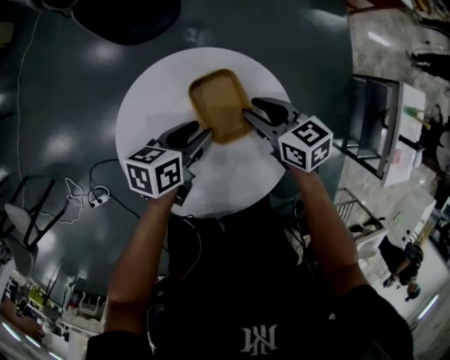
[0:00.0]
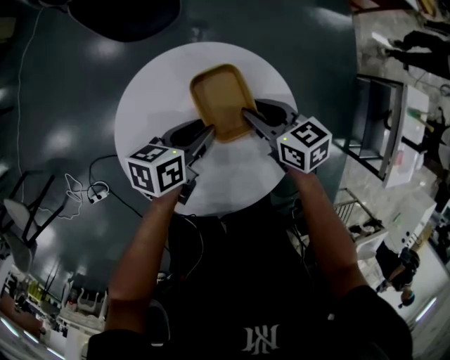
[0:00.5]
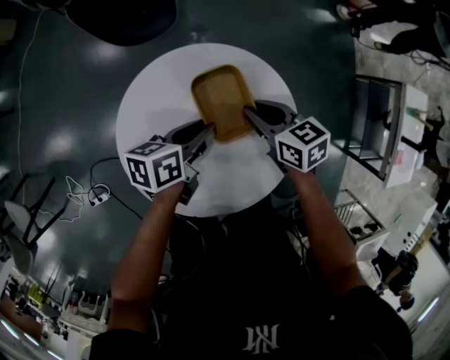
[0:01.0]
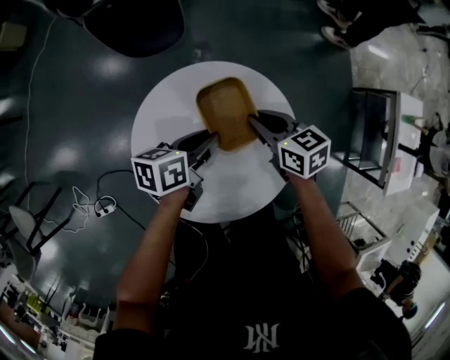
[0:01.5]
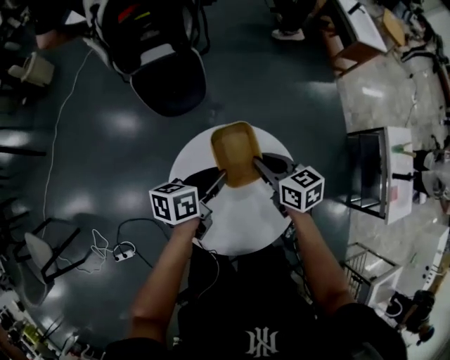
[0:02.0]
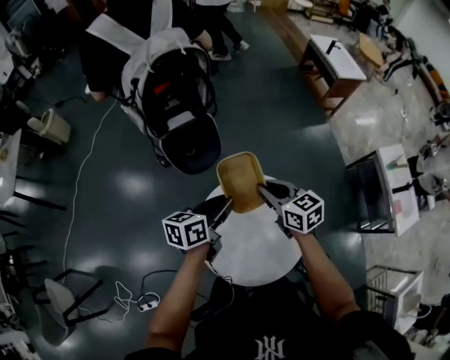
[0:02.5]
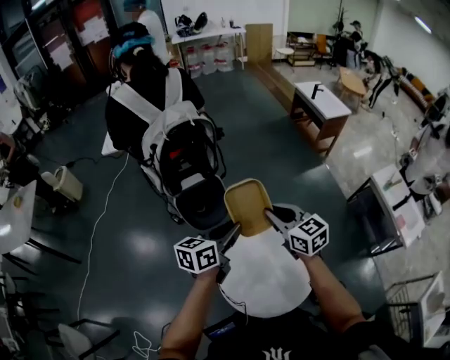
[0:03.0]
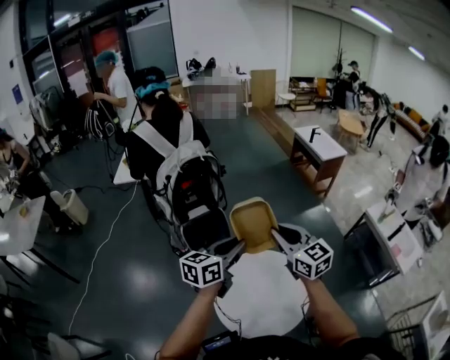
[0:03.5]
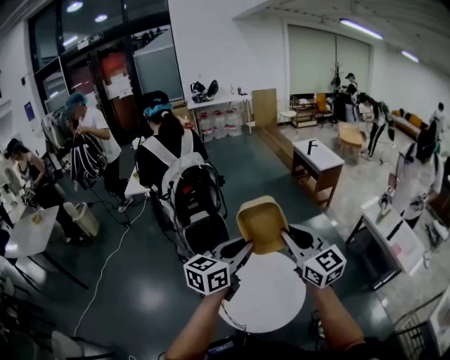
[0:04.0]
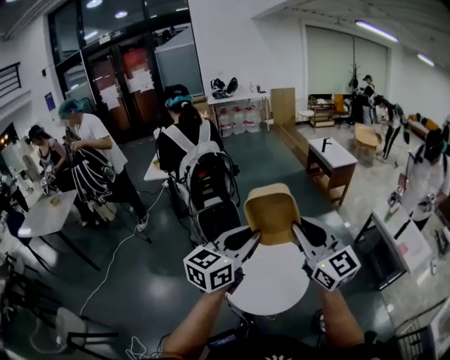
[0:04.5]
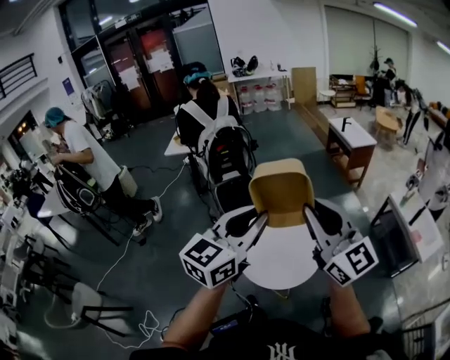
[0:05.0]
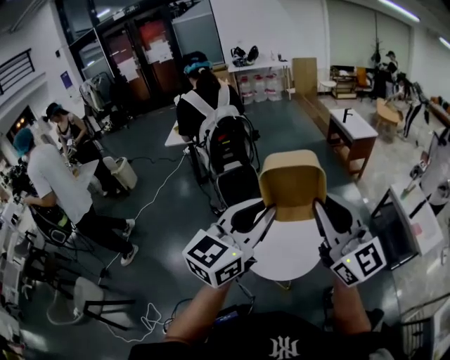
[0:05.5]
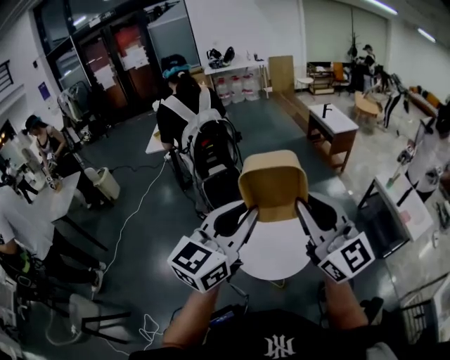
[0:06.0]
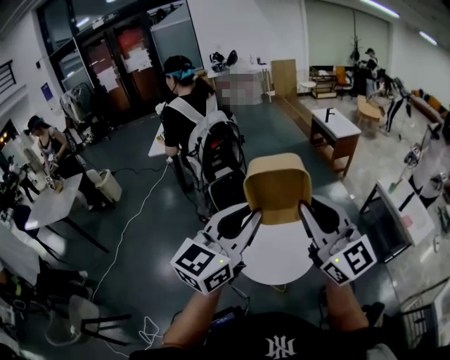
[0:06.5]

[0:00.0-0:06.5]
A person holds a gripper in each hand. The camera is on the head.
0:00.0 to 0:02.0: The grippers both shift upward and to the left by some 15 cm. The right gripper closes. The left gripper closes up.
0:02.0 to 0:04.5: Both grippers travel together upward and backward, some 50 cm. The left gripper rotates around the line of its fingers by roughly 50 degrees, clockwise from behind. Meanwhile the right gripper tilts its fingers about 50 degrees upward.
0:04.5 to 0:06.5: The grippers both shift backward and upward by about 10 cm.

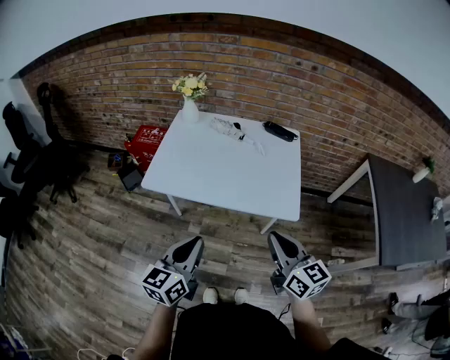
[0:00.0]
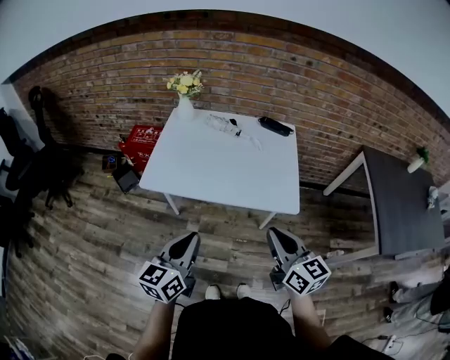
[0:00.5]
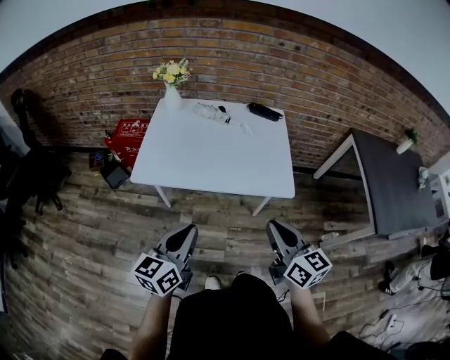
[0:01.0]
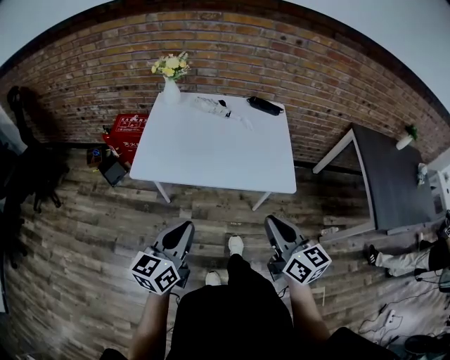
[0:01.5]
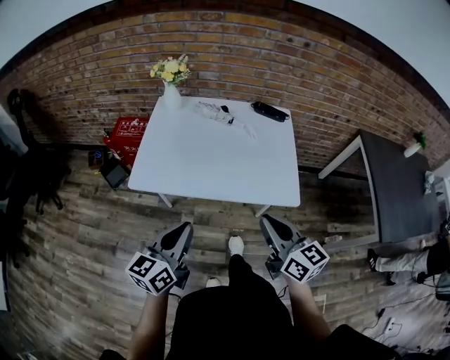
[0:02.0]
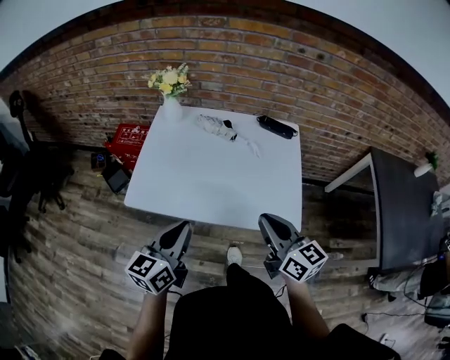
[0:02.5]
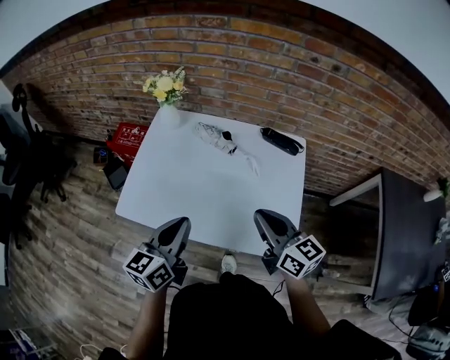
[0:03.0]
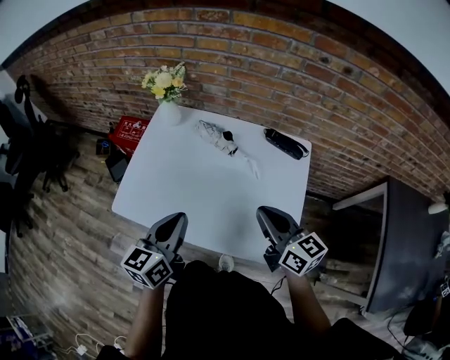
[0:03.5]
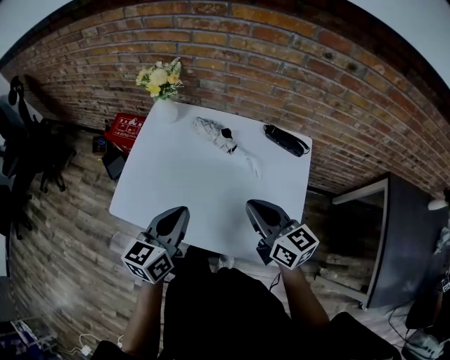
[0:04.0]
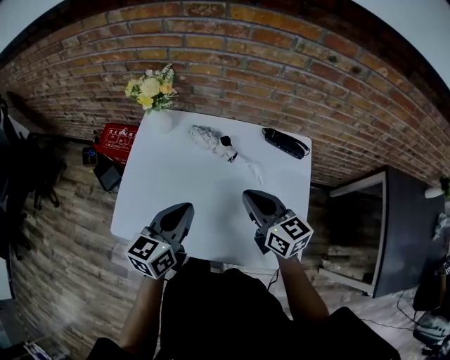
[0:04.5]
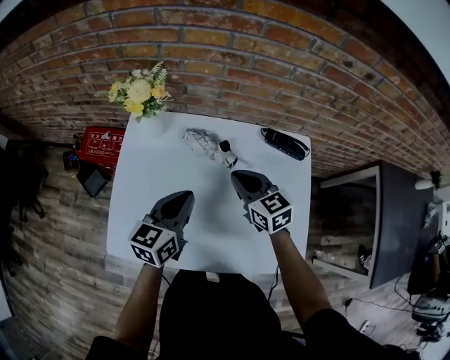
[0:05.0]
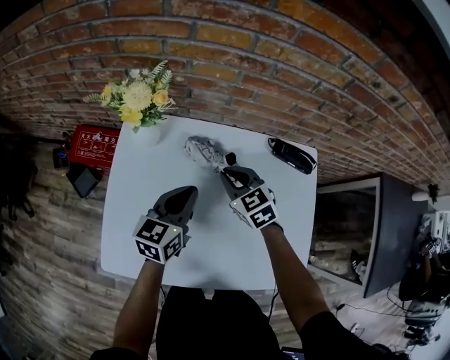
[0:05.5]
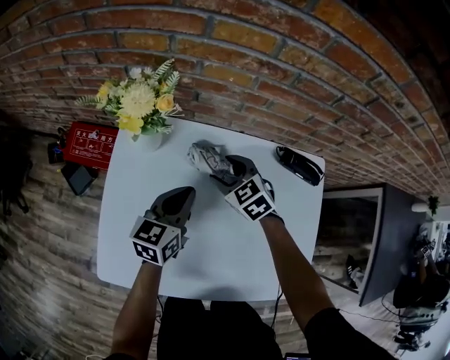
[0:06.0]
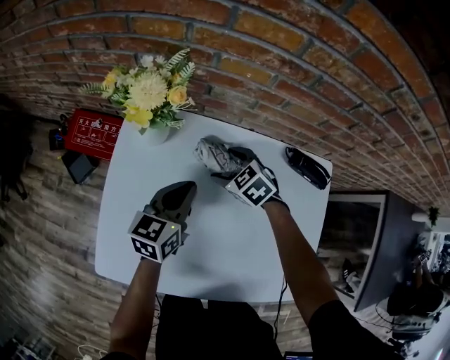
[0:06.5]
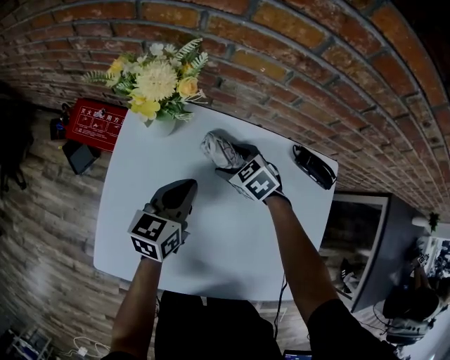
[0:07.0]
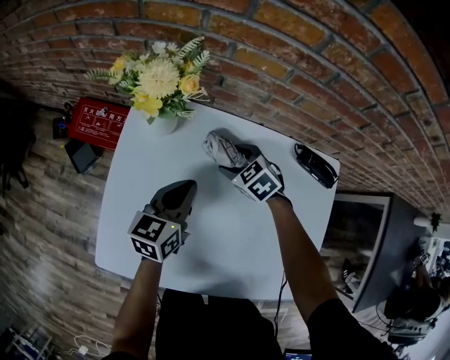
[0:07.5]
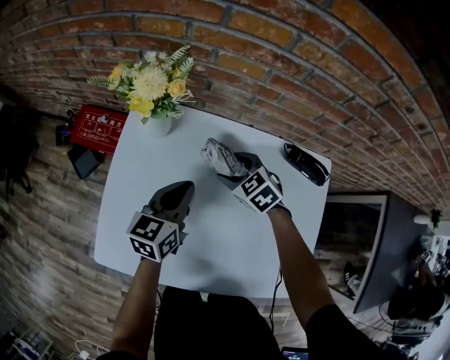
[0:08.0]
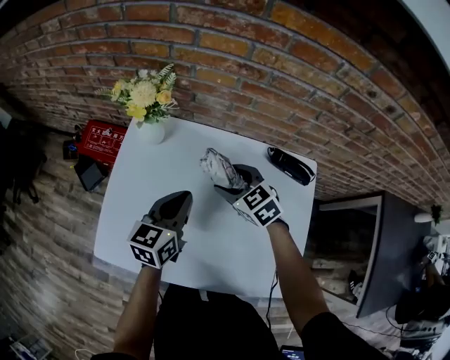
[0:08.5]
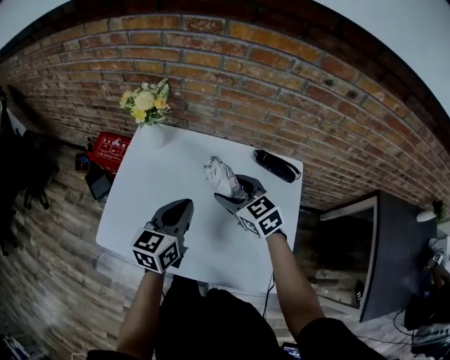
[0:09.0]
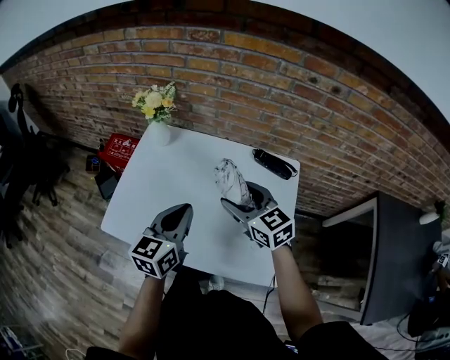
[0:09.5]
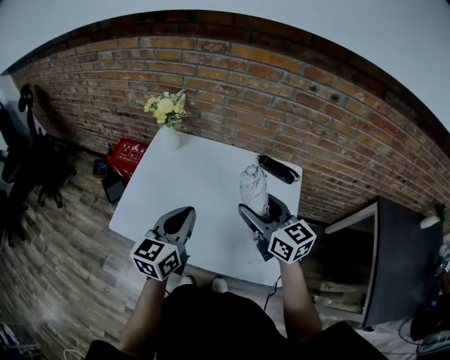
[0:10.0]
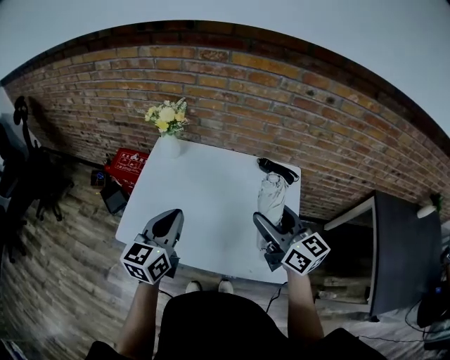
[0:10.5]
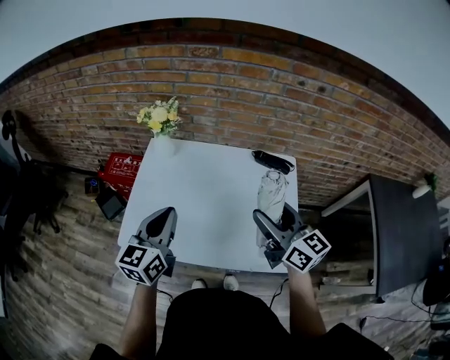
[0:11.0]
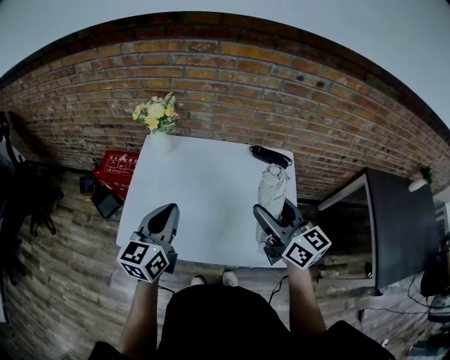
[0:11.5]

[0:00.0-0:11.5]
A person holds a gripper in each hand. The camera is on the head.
0:00.0 to 0:02.0: The right gripper ends up about 5 cm from where it was, while the left gripper moves forward and to the left, roughly 10 cm.
0:02.0 to 0:04.0: Both grippers move forward, approximately 25 cm.
0:04.0 to 0:06.0: The left gripper heads forward and downward, covering about 30 cm; the right gripper heads forward, downward and to the left, covering about 40 cm, tips its fingers downward by roughly 40 degrees, and opens up.
0:06.0 to 0:07.5: The right gripper travels downward by roughly 5 cm.
0:07.5 to 0:09.5: The left gripper goes approximately 30 cm backward and upward, while the right gripper shifts some 35 cm upward and backward, and points its fingers some 40 degrees further upward.
0:09.5 to 0:11.5: The right gripper is displaced upward and backward by about 15 cm, and swivels some 30 degrees; the left gripper moves to the left and upward, approximately 10 cm.

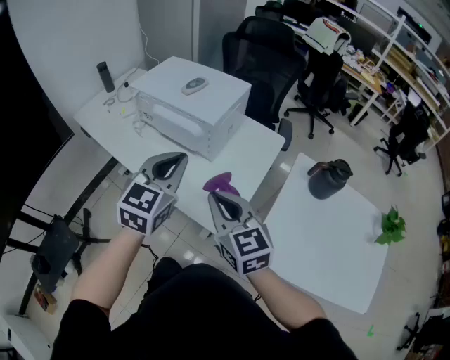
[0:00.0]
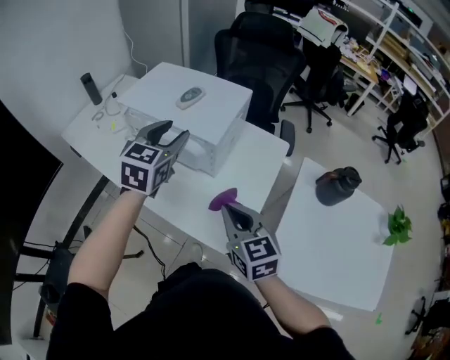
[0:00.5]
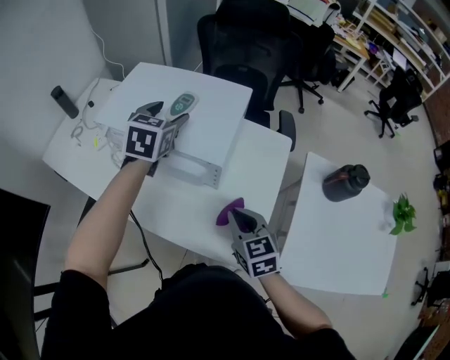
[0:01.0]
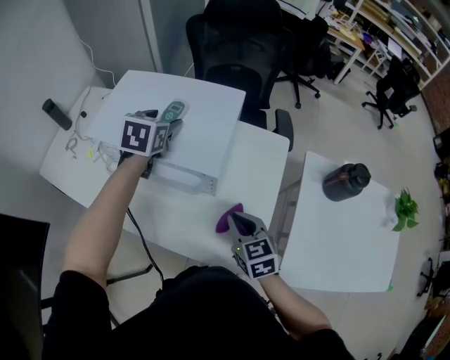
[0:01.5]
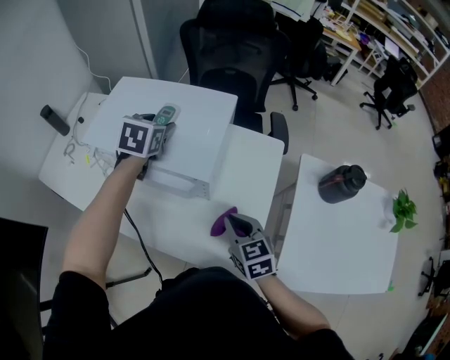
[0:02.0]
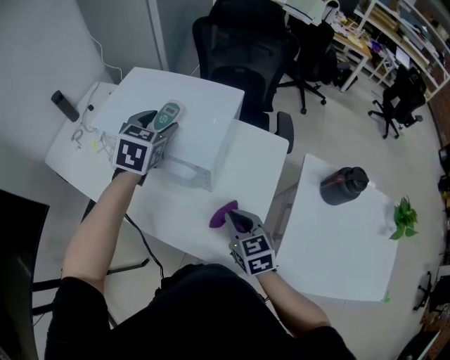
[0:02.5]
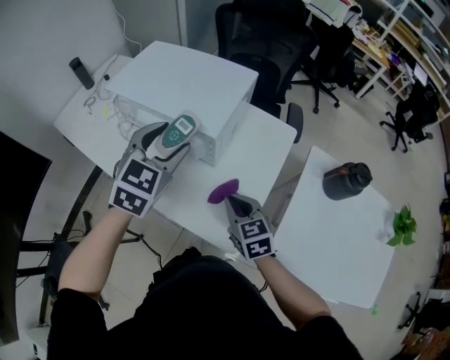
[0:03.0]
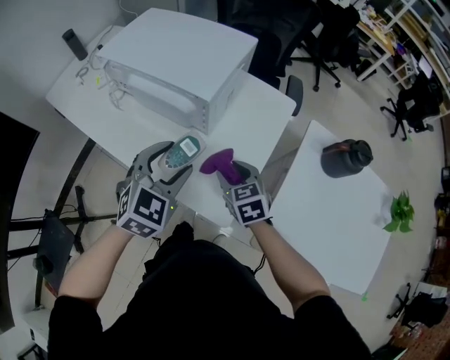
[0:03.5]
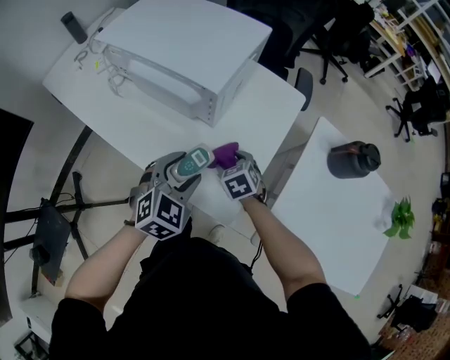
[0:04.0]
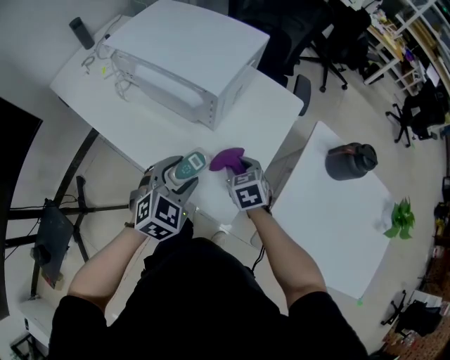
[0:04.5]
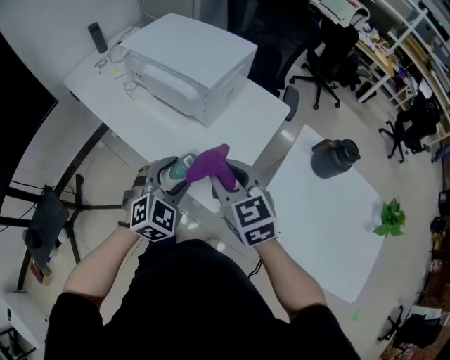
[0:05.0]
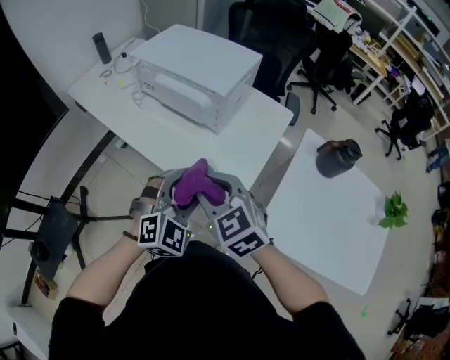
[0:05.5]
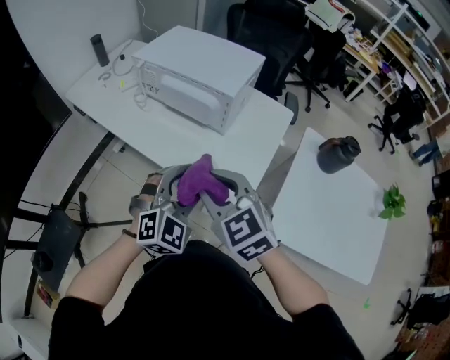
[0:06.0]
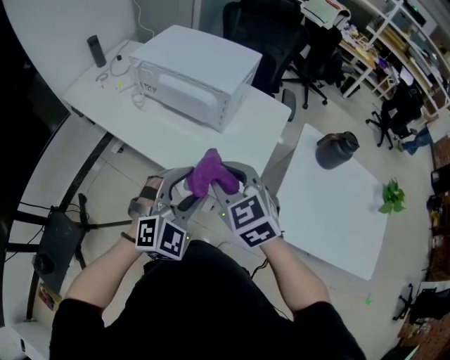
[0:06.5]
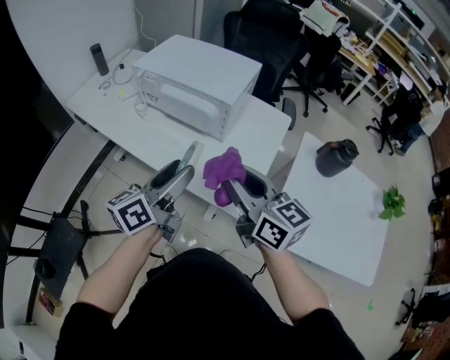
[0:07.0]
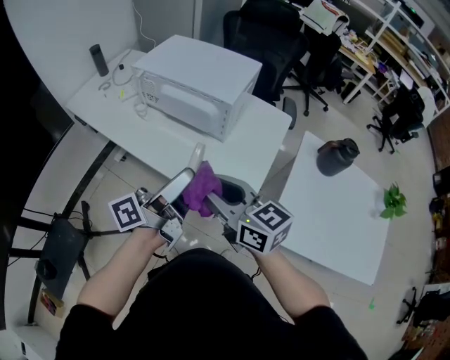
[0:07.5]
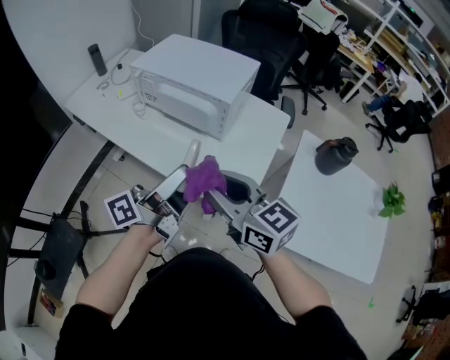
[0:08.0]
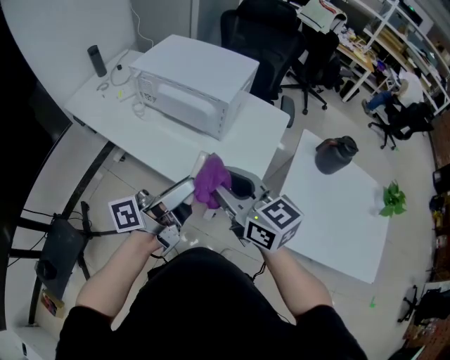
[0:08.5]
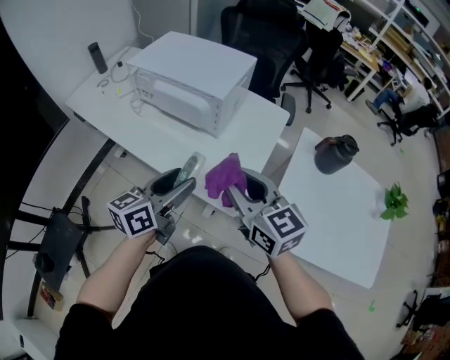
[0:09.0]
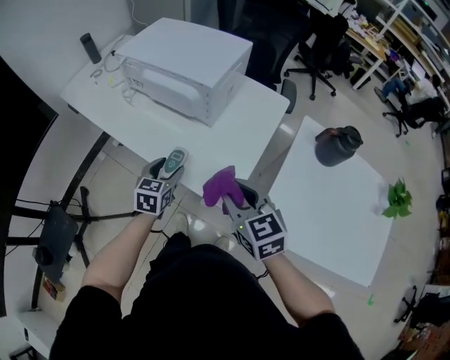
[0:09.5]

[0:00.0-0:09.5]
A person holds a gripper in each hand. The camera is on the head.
0:00.0 to 0:02.0: The left gripper moves forward, some 40 cm, turns by approximately 30 degrees, and opens up; the right gripper heads forward and downward, covering approximately 25 cm, and turns by roughly 30 degrees.
0:02.0 to 0:04.0: The left gripper goes some 35 cm backward; the right gripper goes approximately 15 cm downward, turns by roughly 30 degrees, and opens up.
0:04.0 to 0:05.5: The right gripper moves upward, backward and to the left, roughly 35 cm, turns by about 30 degrees, and closes; the left gripper heads backward and upward, covering roughly 15 cm, and changes its angle by about 20 degrees.
0:05.5 to 0:07.5: The left gripper heads upward and to the left, covering roughly 10 cm, and rotates around the line of its fingers by about 100 degrees, counterclockwise from behind. The right gripper moves about 5 cm, and changes its angle by about 40 degrees.
0:07.5 to 0:09.5: The left gripper goes approximately 25 cm downward, and tilts its fingers about 50 degrees downward, while the right gripper travels to the right and downward by roughly 15 cm, and turns by roughly 20 degrees.
